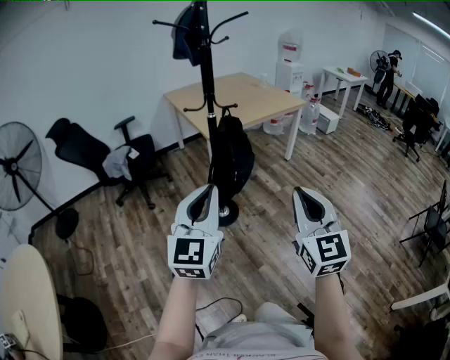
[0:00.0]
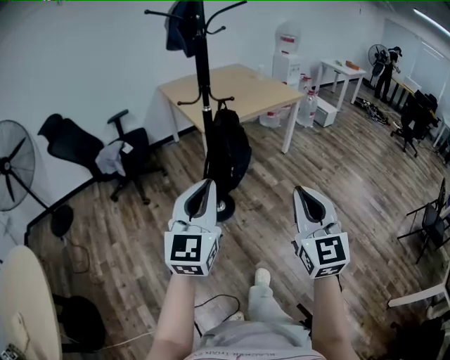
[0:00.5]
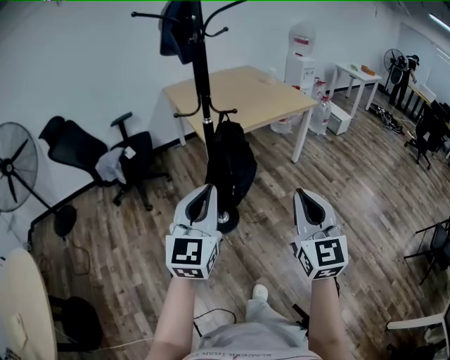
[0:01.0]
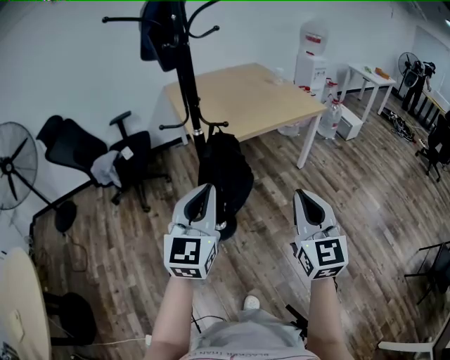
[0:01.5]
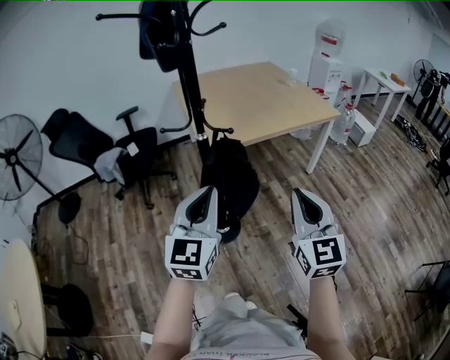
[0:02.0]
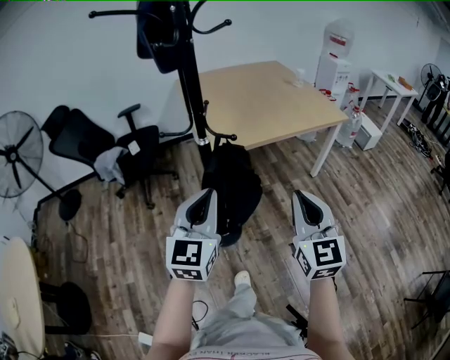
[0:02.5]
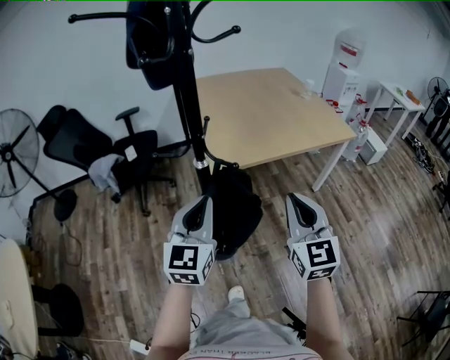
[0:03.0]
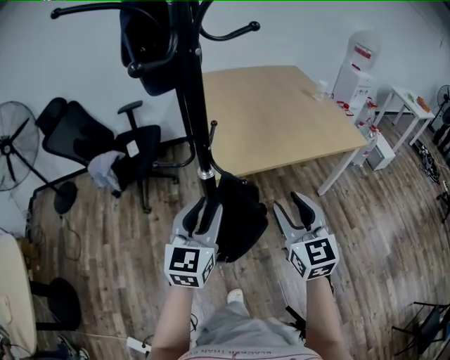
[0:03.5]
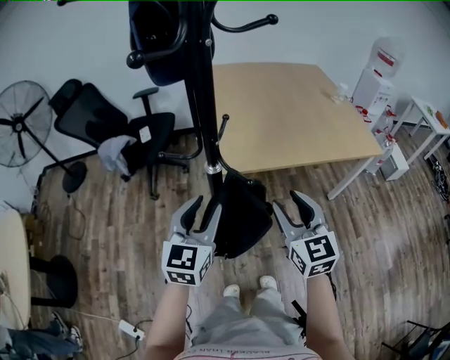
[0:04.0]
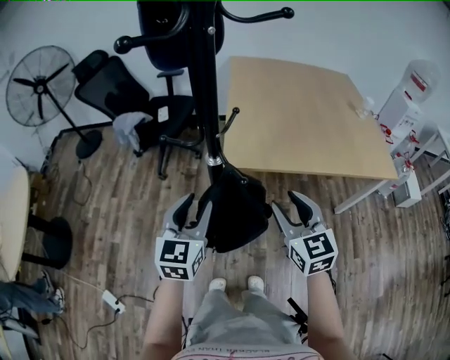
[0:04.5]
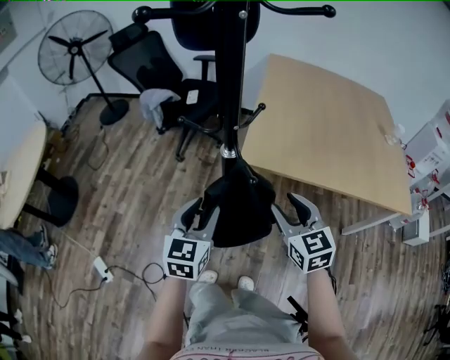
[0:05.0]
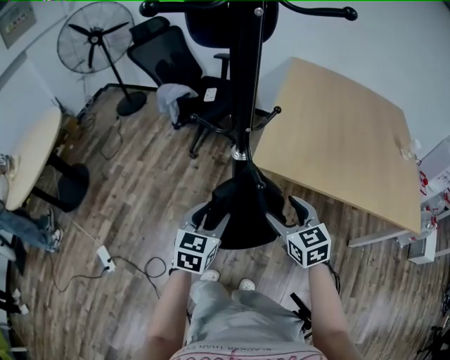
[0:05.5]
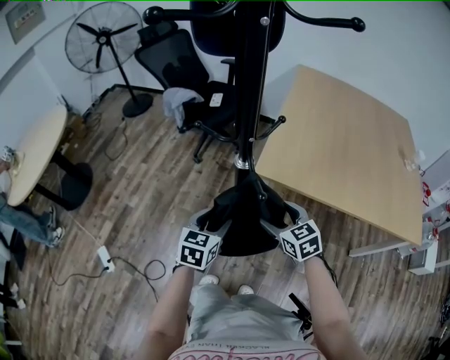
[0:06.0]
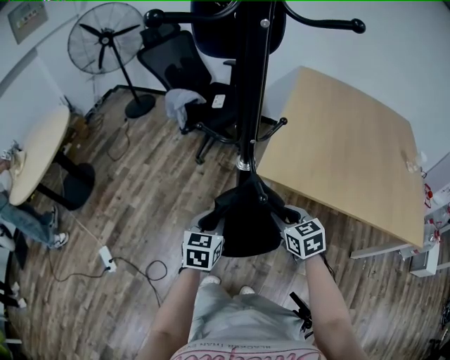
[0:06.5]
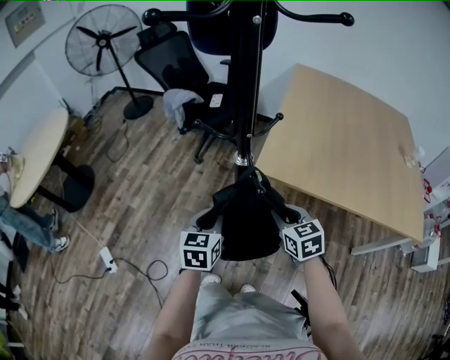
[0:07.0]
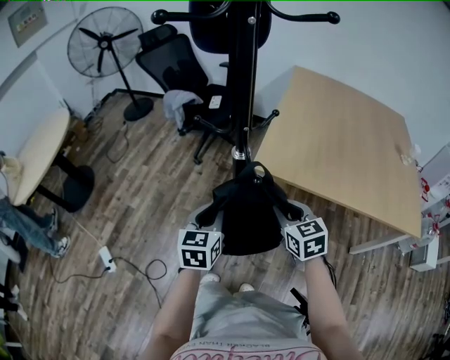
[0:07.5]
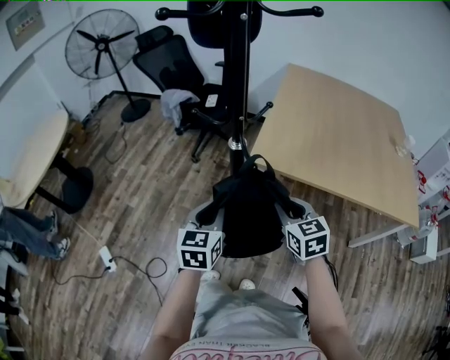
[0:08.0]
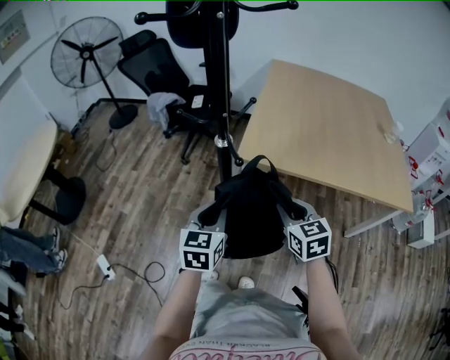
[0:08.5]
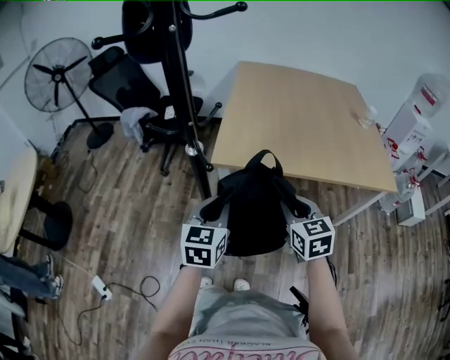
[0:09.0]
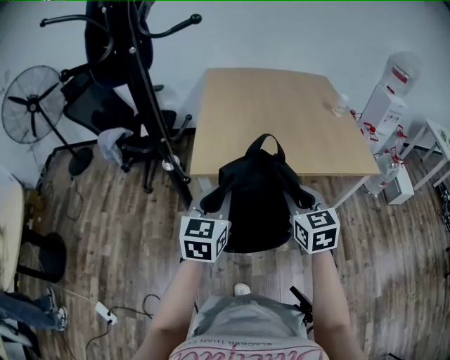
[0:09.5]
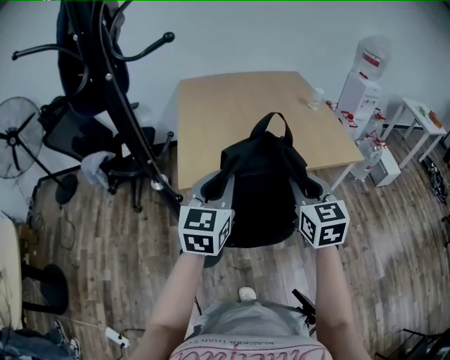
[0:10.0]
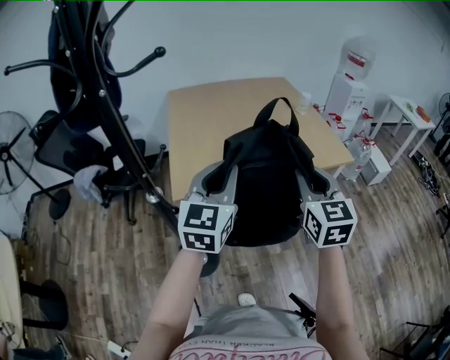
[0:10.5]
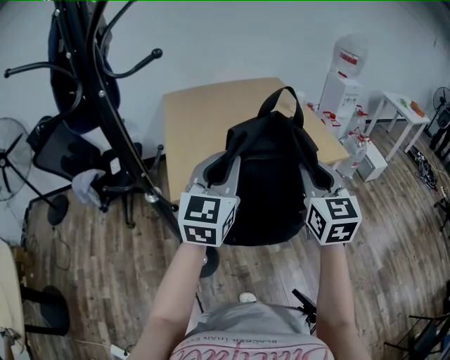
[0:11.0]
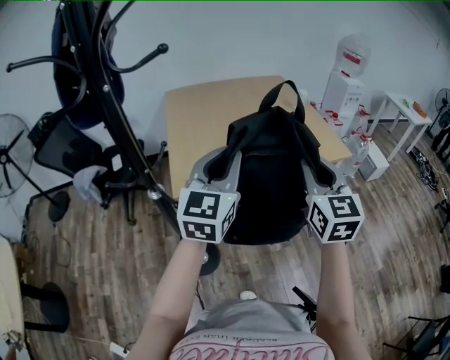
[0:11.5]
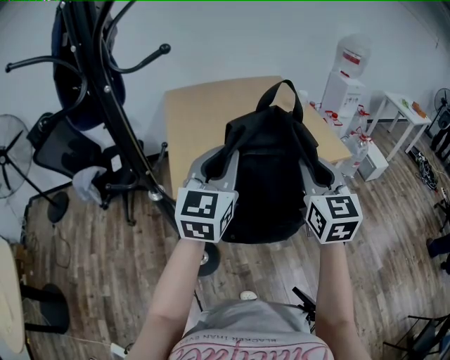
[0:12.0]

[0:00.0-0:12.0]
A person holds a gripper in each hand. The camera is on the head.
0:00.0 to 0:02.0: The grippers both shift forward by approximately 30 cm.
0:02.0 to 0:04.0: The two grippers go approximately 20 cm forward. The right gripper rotates some 20 degrees, and opens up. The left gripper opens up.
0:04.0 to 0:06.0: Both grippers move downward, roughly 15 cm. The right gripper swivels approximately 50 degrees, and opens its fingers. The left gripper turns by roughly 30 degrees.
0:06.0 to 0:08.0: Both grippers move upward and backward, roughly 10 cm. The right gripper closes its fingers; the left gripper closes its fingers.
0:08.0 to 0:10.0: The left gripper changes place by about 25 cm, and swivels roughly 40 degrees, while the right gripper shifts by about 25 cm, and turns by approximately 40 degrees.
0:10.0 to 0:12.0: Both grippers travel together upward, approximately 10 cm.

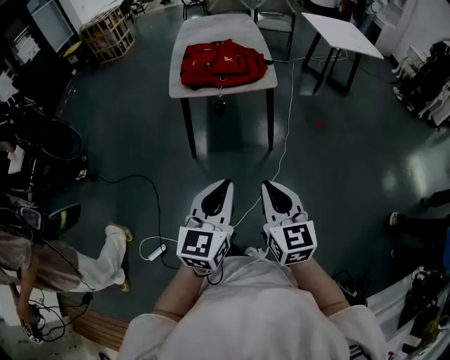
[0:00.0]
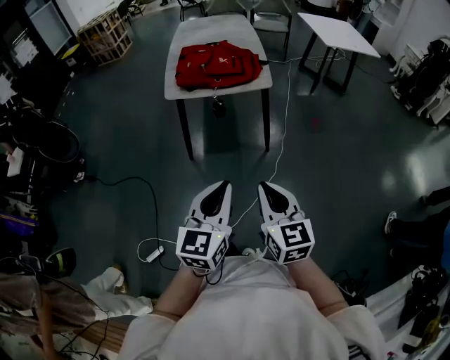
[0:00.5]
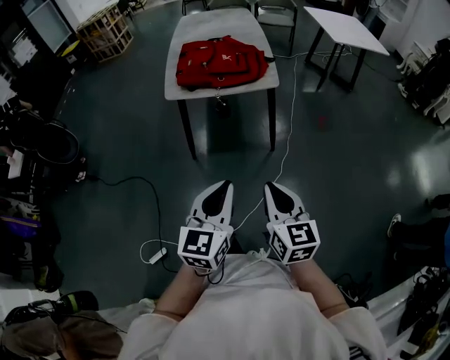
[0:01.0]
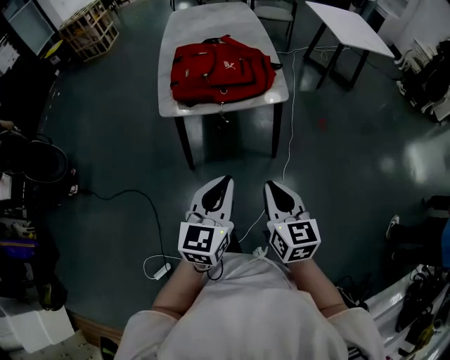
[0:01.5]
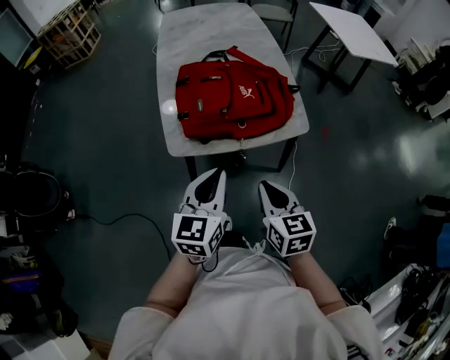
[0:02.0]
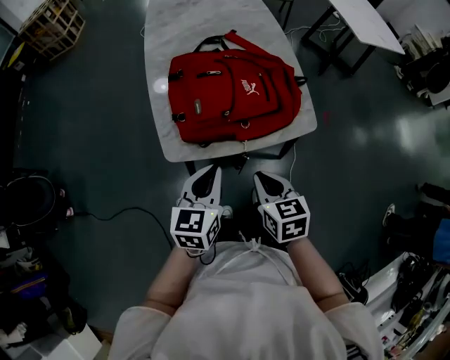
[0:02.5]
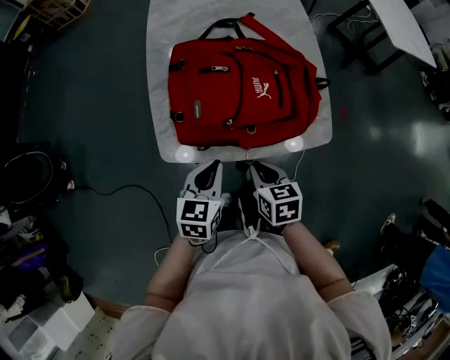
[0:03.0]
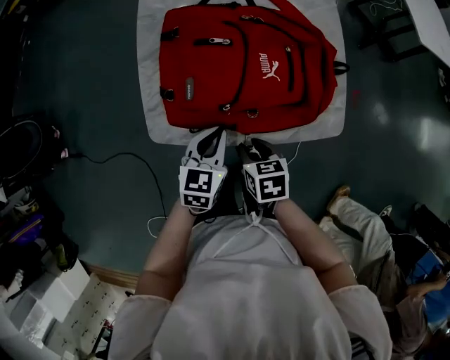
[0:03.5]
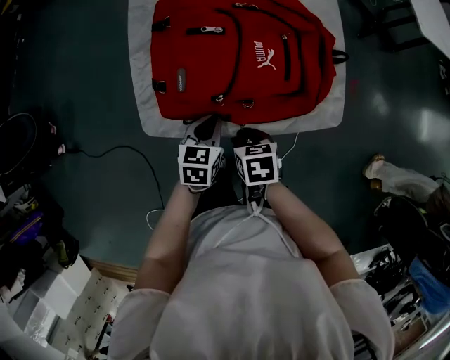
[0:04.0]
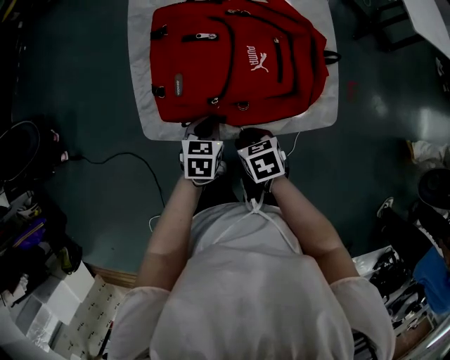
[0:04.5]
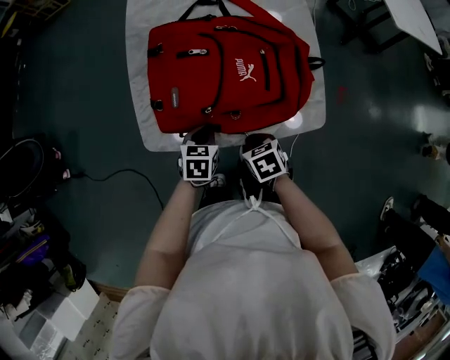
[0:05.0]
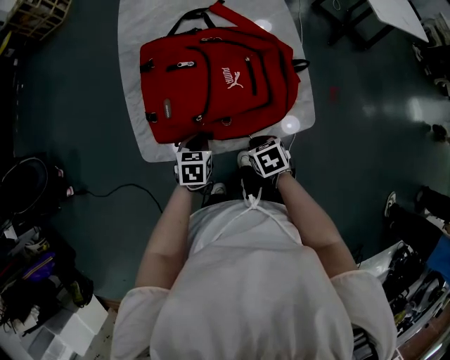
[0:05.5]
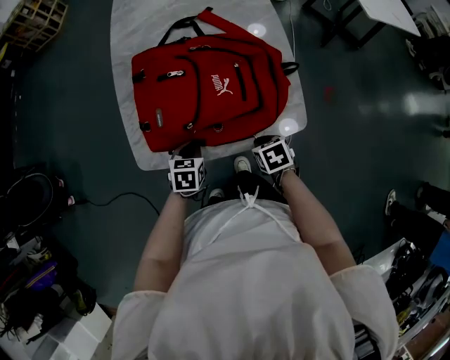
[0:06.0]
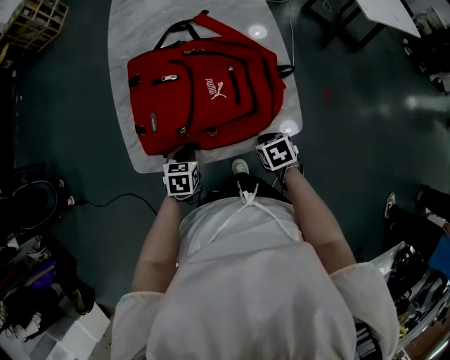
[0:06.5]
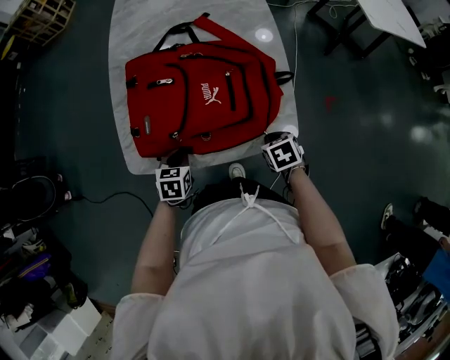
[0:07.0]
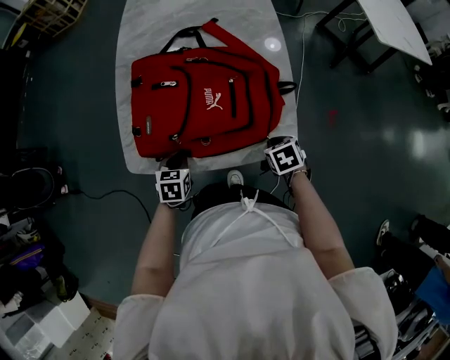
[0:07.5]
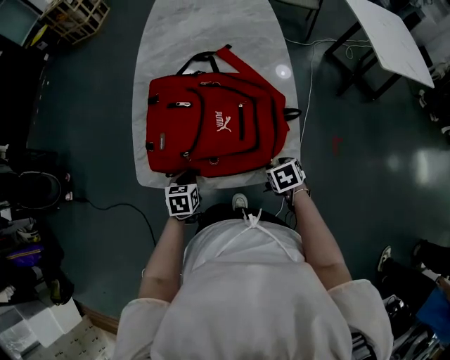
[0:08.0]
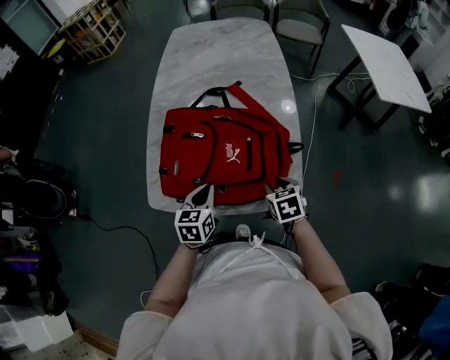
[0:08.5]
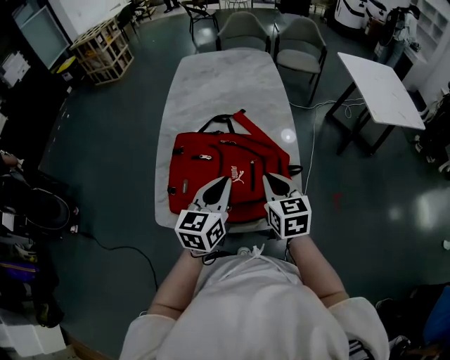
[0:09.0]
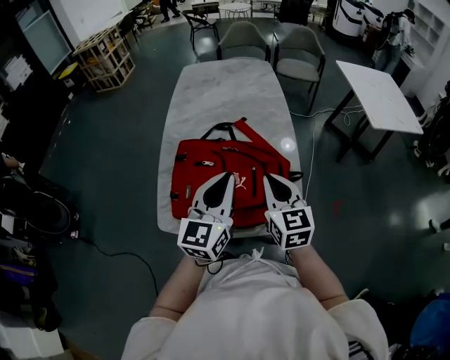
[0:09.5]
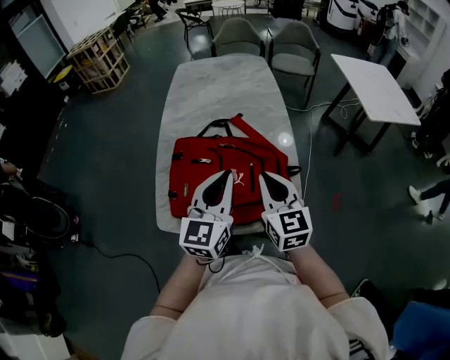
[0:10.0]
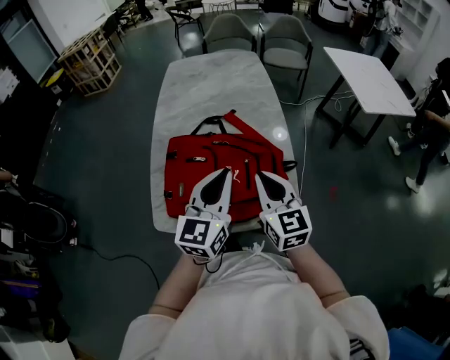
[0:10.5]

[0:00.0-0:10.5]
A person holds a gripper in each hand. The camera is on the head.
0:00.0 to 0:02.0: The two grippers travel together, forward, some 50 cm.
0:02.0 to 0:04.0: Both grippers travel together downward and forward, roughly 30 cm. The left gripper swivels approximately 30 degrees. The right gripper tips its fingers downward by about 30 degrees.
0:04.0 to 0:06.5: The right gripper heads to the right, covering approximately 15 cm.
0:06.5 to 0:08.5: The right gripper goes approximately 10 cm upward and forward, and opens its fingers; the left gripper moves upward and to the right, about 15 cm, and swivels some 20 degrees.
0:08.5 to 0:10.5: Both grippers move upward, roughly 20 cm. The left gripper angles its fingers upward, by about 30 degrees, while the right gripper tilts its fingers roughly 40 degrees upward, and closes.

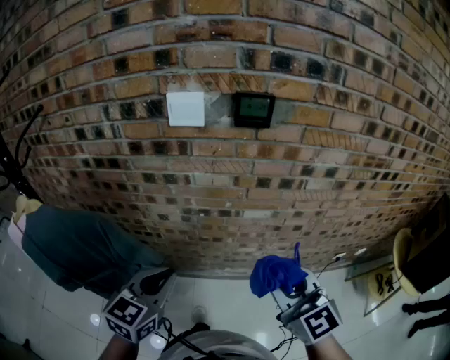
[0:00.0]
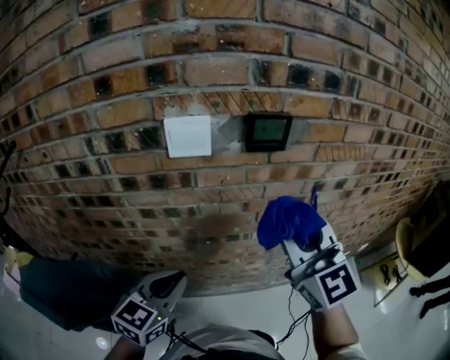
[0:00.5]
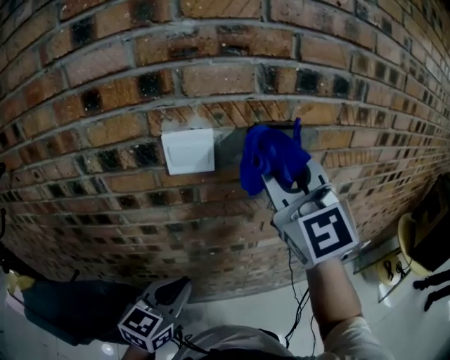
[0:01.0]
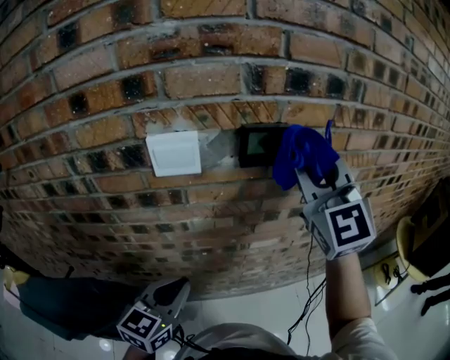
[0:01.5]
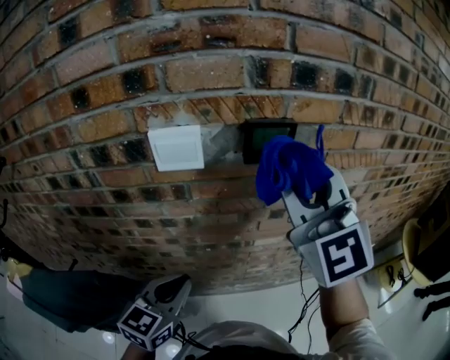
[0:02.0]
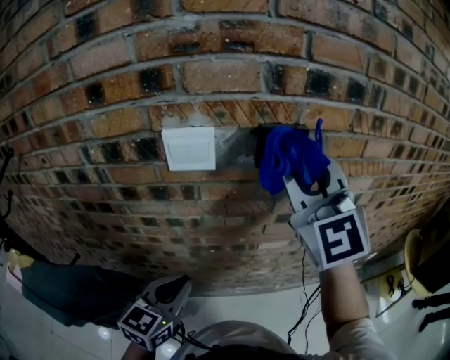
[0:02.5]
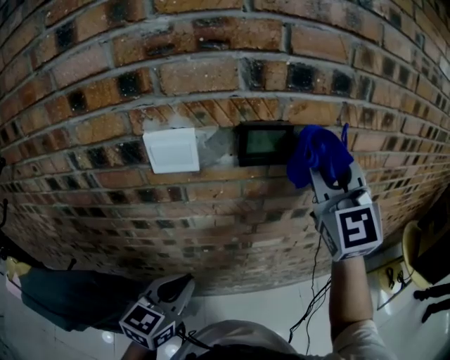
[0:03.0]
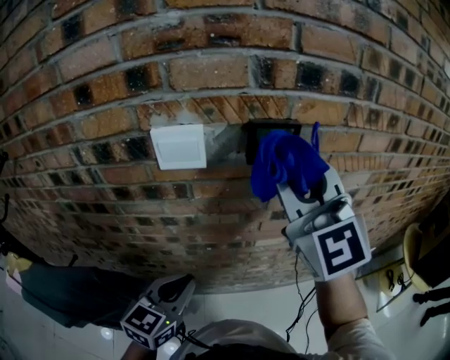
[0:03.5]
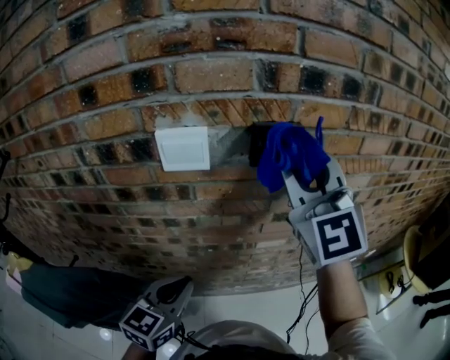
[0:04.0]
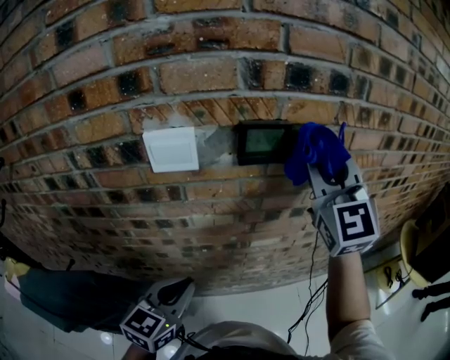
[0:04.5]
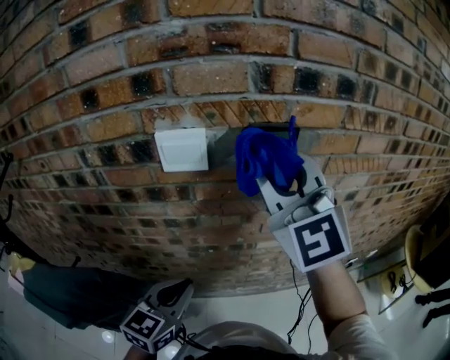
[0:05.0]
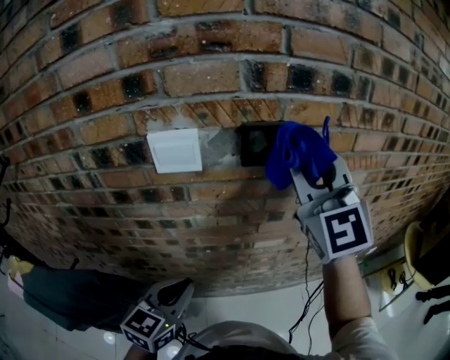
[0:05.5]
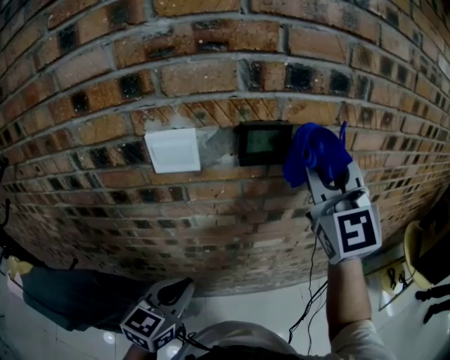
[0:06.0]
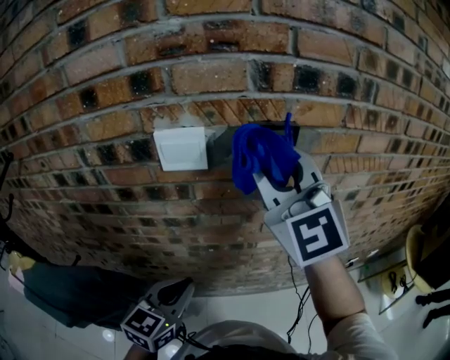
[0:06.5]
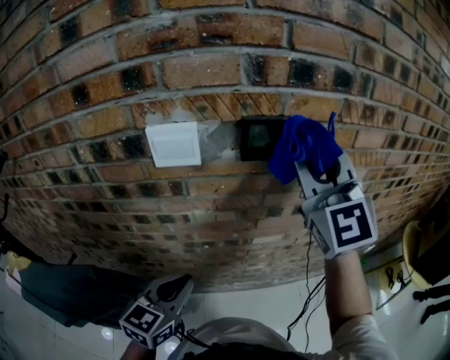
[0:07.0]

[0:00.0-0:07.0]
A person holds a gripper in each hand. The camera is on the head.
0:00.0 to 0:02.0: The left gripper heads forward, covering approximately 15 cm. The right gripper is displaced forward and upward by approximately 30 cm, and changes its angle by roughly 30 degrees.
0:02.0 to 0:03.5: The right gripper goes to the right and returns, about 10 cm each way.
0:03.5 to 0:05.0: The right gripper travels to the right and back again, approximately 10 cm each way.
0:05.0 to 0:07.0: The right gripper swings left and right, some 10 cm each way, with 2 reversals.
